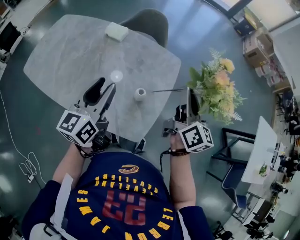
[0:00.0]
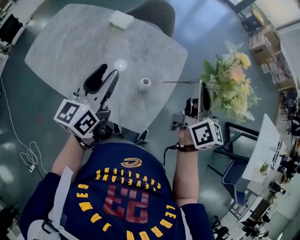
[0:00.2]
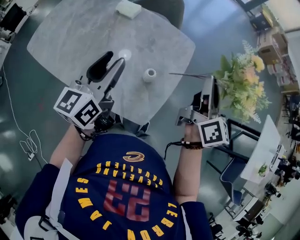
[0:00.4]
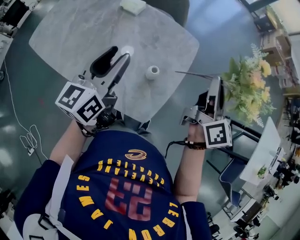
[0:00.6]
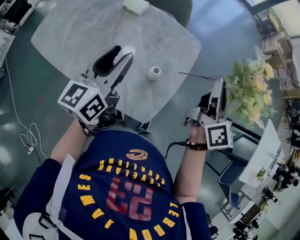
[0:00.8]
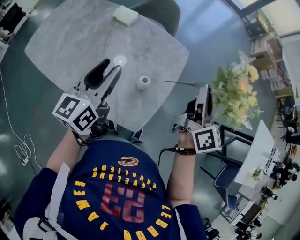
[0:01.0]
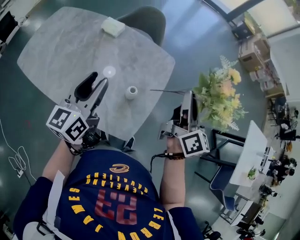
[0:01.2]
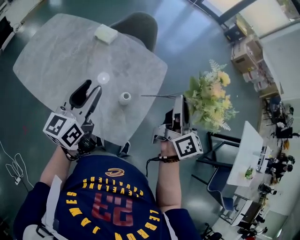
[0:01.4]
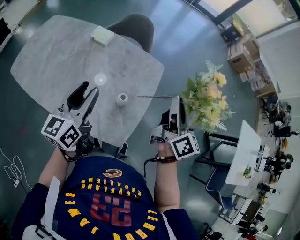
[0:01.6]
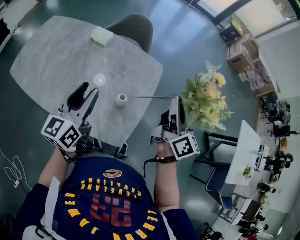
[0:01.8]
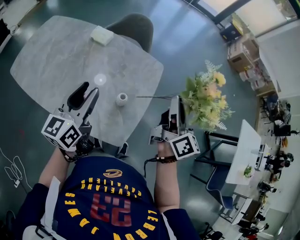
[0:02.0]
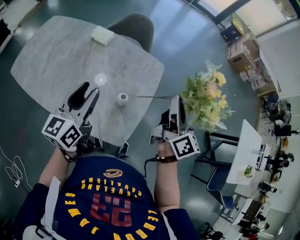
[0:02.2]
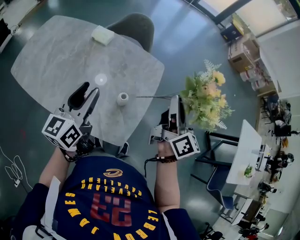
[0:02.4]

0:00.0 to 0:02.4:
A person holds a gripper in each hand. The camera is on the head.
0:00.0 to 0:02.4: The grippers stay close to where they were, moving slightly.

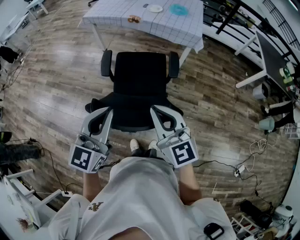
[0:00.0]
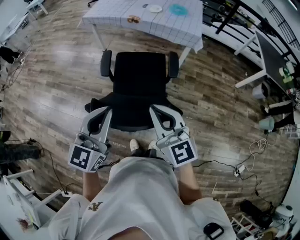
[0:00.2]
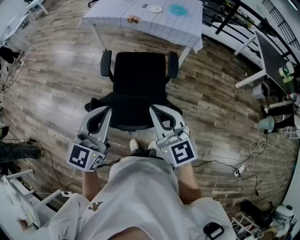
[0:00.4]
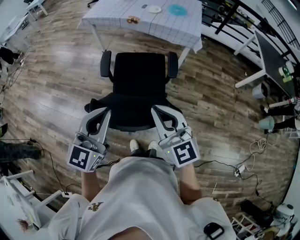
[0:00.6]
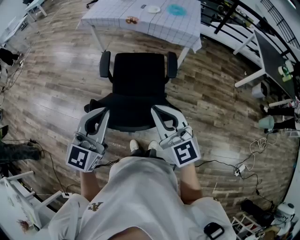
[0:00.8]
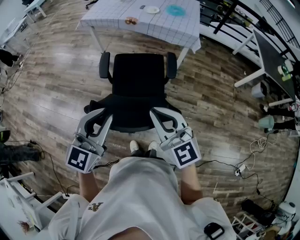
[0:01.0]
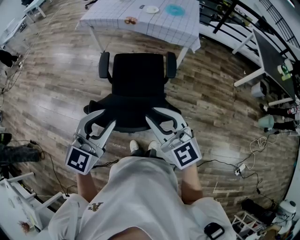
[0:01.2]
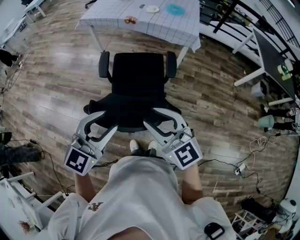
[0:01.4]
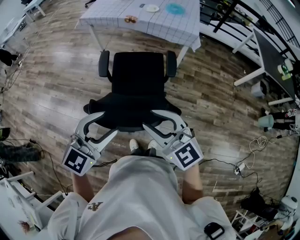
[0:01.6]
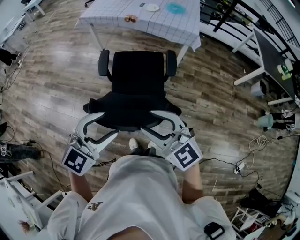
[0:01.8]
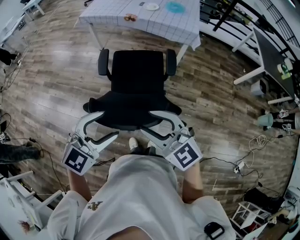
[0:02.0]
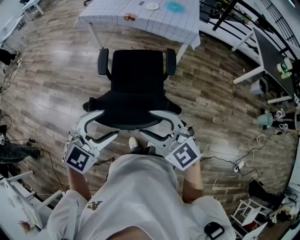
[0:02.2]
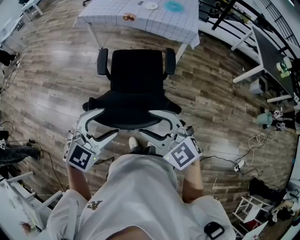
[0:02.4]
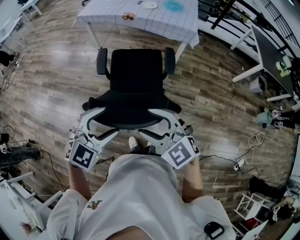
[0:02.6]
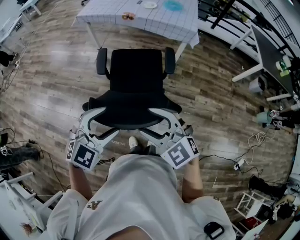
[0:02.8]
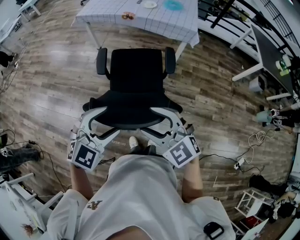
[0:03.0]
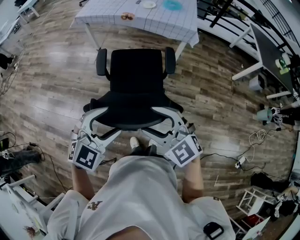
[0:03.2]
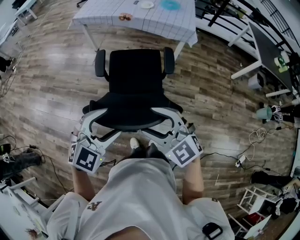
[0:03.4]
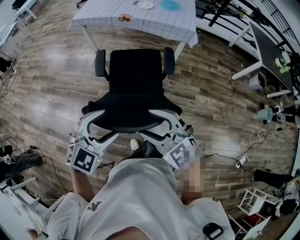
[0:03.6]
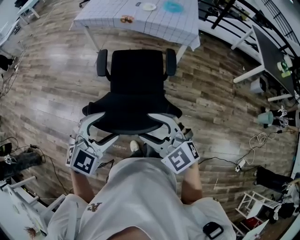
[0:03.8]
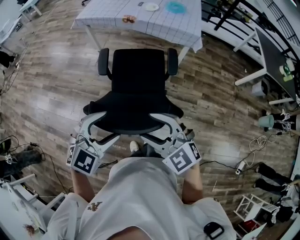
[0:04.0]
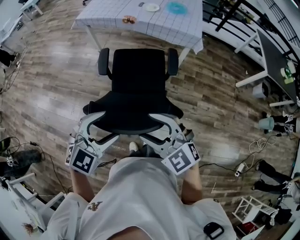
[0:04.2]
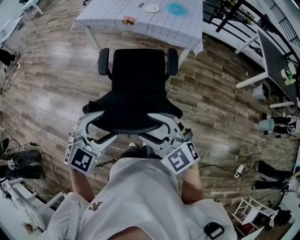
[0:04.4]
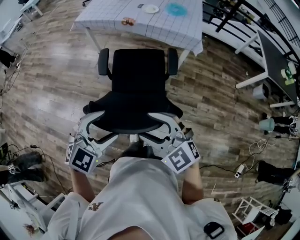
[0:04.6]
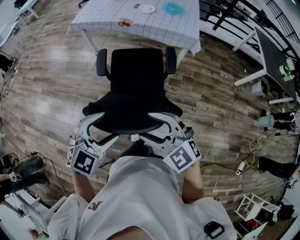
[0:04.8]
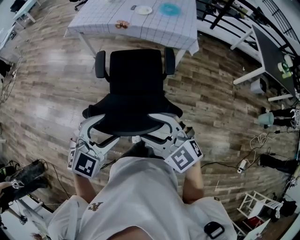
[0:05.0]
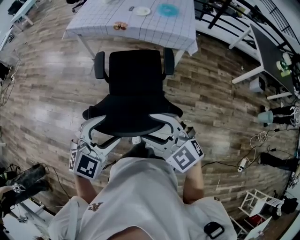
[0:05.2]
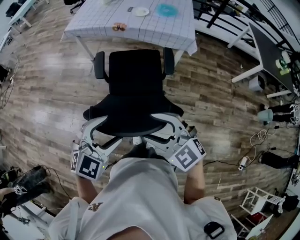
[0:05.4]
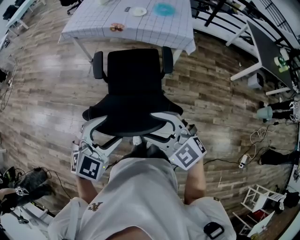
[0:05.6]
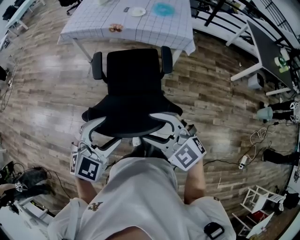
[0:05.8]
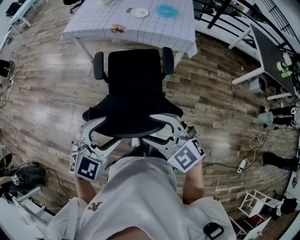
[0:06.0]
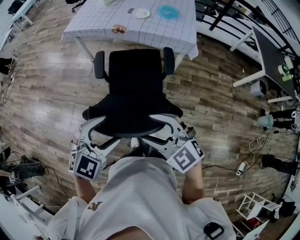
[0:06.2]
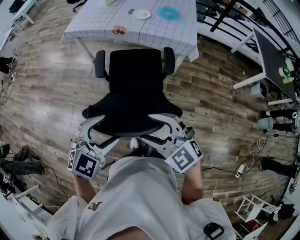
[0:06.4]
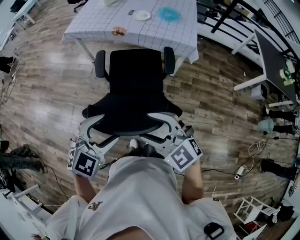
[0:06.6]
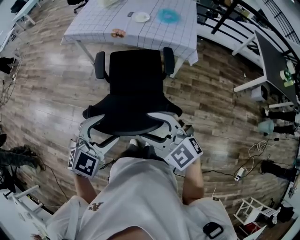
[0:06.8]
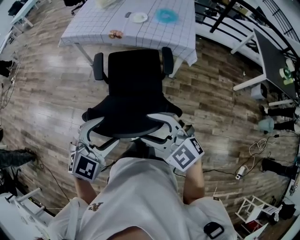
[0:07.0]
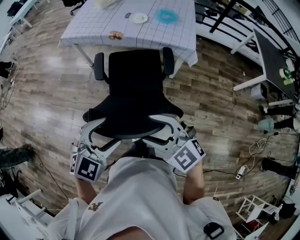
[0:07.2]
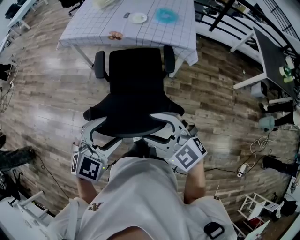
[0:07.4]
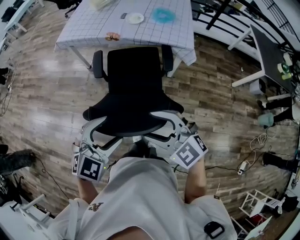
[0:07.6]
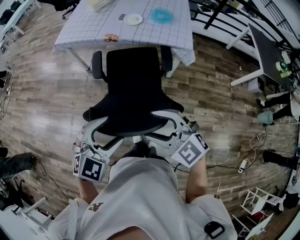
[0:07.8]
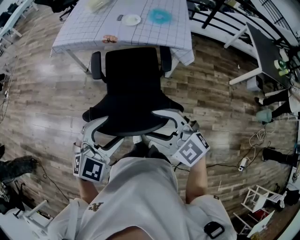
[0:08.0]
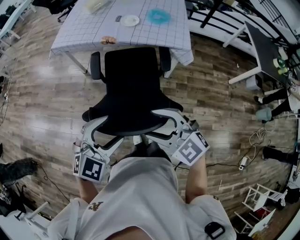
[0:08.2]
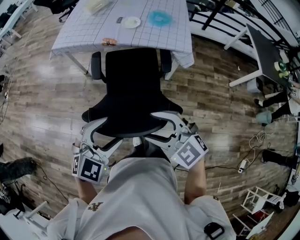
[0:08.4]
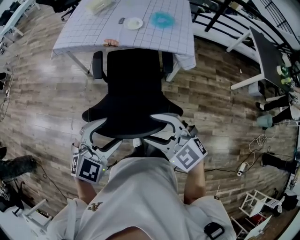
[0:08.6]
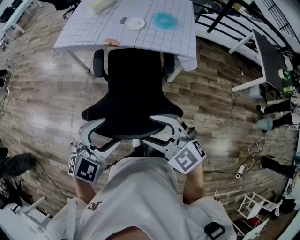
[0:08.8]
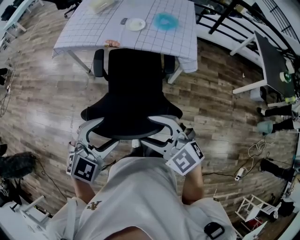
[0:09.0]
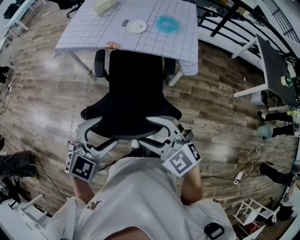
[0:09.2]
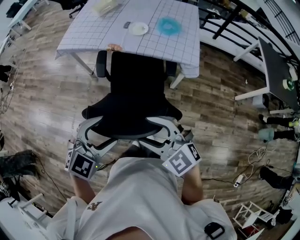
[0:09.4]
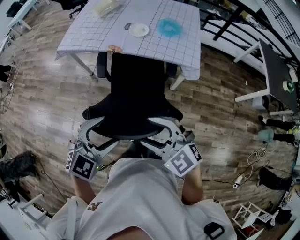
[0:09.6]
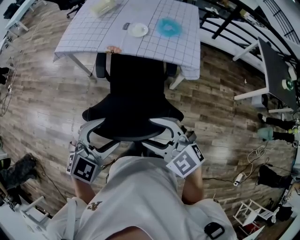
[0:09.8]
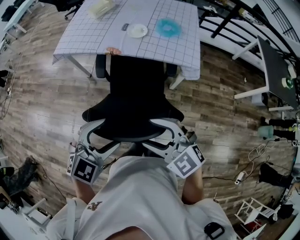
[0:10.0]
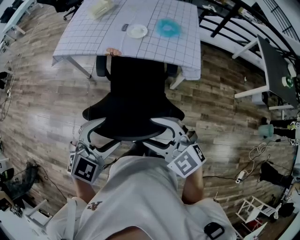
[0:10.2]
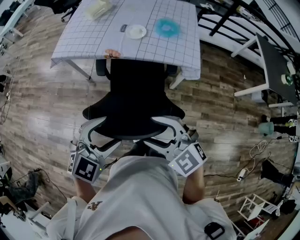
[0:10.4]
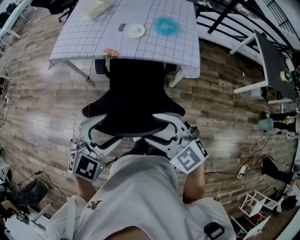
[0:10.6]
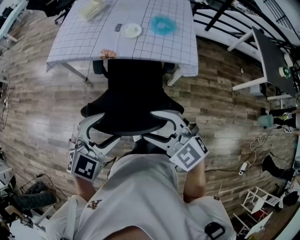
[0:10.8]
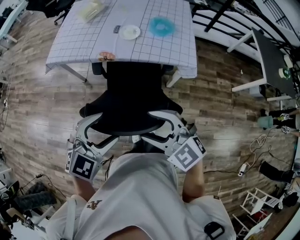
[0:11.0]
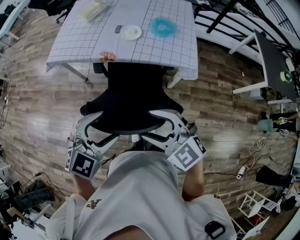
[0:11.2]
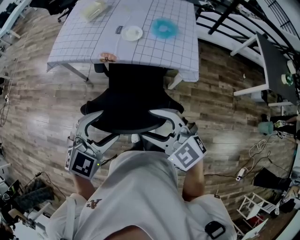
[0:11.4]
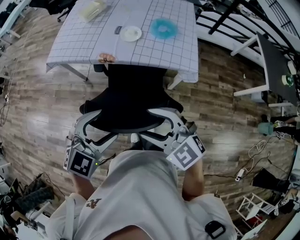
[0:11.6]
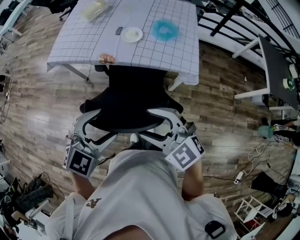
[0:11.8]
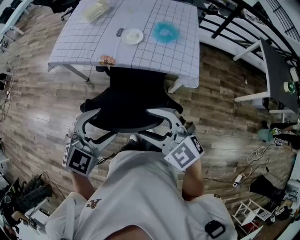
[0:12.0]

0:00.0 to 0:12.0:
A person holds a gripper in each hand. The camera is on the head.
0:00.0 to 0:01.6: The right gripper opens its fingers. Meanwhile the left gripper swivels some 30 degrees, and opens up.
0:01.6 to 0:03.0: The right gripper opens.
0:03.0 to 0:04.4: Both grippers travel together forward, approximately 10 cm.
0:04.4 to 0:06.0: The grippers both shift forward by approximately 10 cm.
0:06.0 to 0:07.6: The two grippers go approximately 10 cm forward.
0:07.6 to 0:09.0: Both grippers move forward, roughly 10 cm.
0:09.0 to 0:10.4: The two grippers go approximately 10 cm forward.
0:10.4 to 0:12.0: Both grippers move forward, roughly 10 cm.

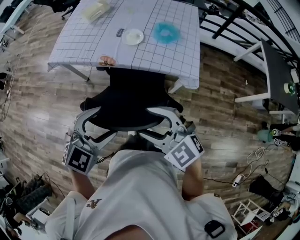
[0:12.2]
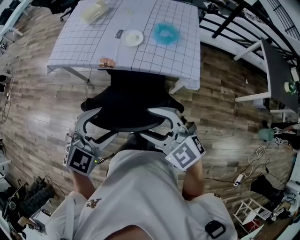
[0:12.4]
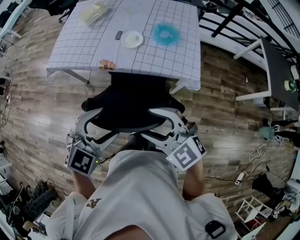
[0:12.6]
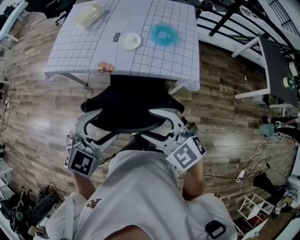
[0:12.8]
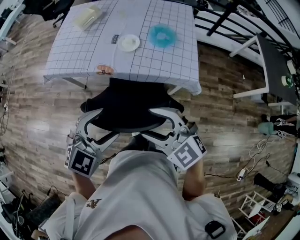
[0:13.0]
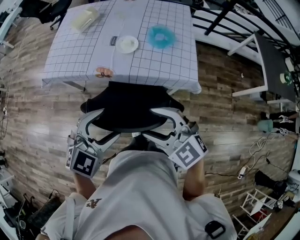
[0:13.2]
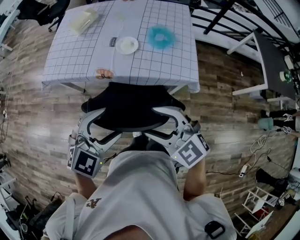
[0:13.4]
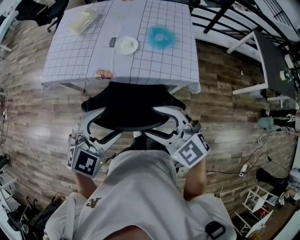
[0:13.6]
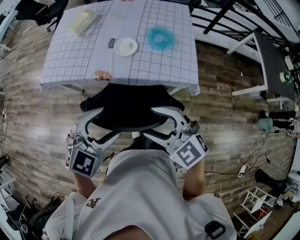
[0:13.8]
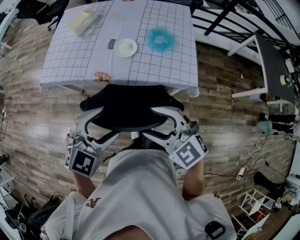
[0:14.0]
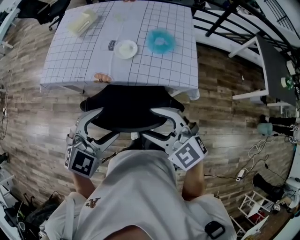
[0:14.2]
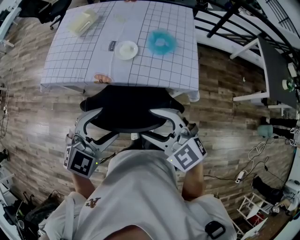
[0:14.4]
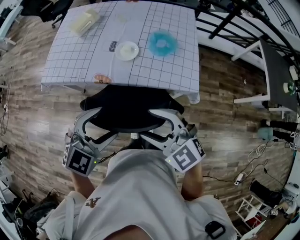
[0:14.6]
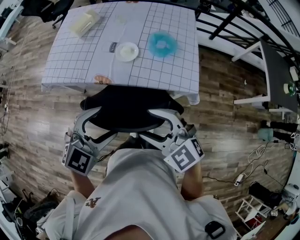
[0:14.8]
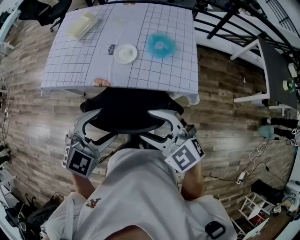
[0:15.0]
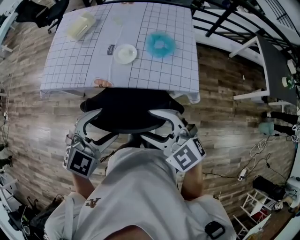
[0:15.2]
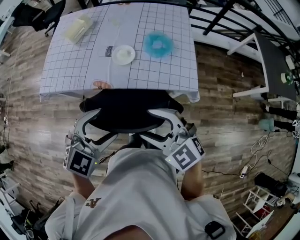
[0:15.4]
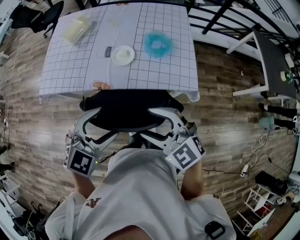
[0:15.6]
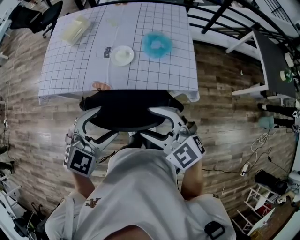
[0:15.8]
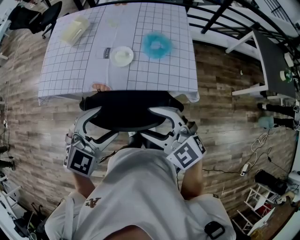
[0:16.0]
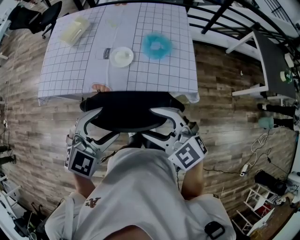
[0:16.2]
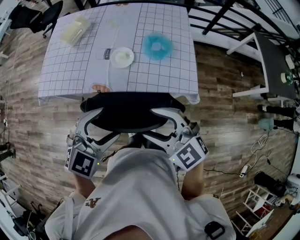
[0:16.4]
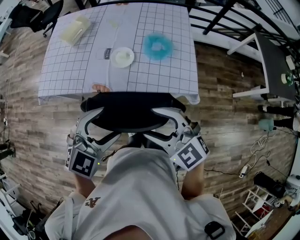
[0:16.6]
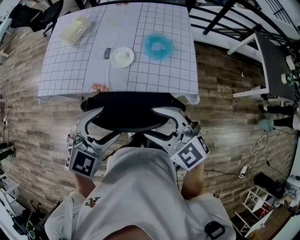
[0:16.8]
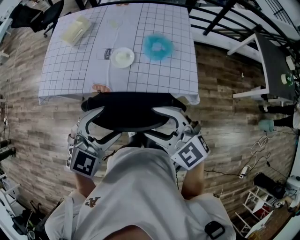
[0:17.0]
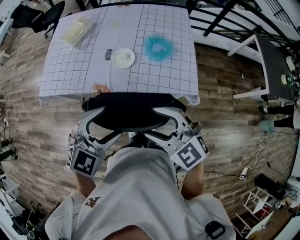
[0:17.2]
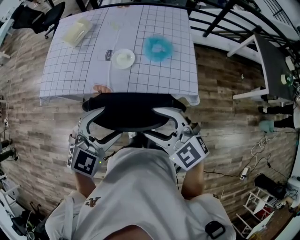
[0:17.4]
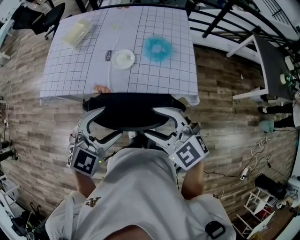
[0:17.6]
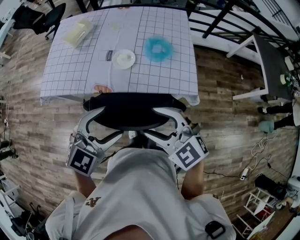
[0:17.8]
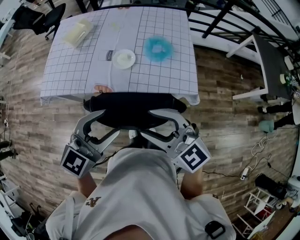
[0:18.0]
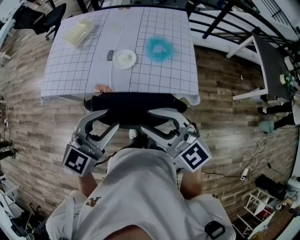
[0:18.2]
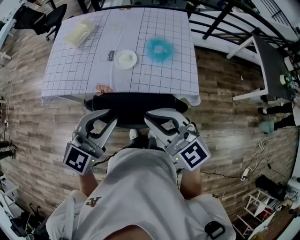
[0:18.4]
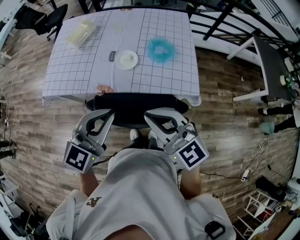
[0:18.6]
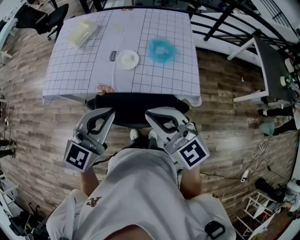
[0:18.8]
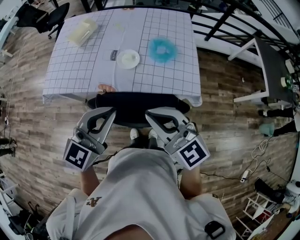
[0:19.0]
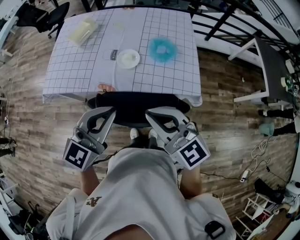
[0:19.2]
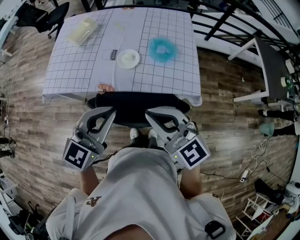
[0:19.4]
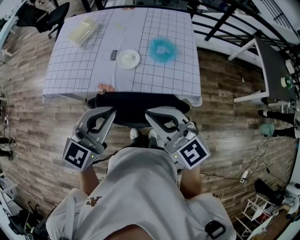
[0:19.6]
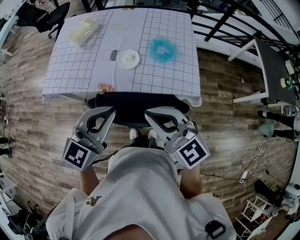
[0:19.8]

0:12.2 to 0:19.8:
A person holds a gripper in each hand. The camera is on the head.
0:12.2 to 0:13.8: Both grippers move forward, some 10 cm.
0:13.8 to 0:15.2: The two grippers go about 5 cm forward.
0:15.2 to 0:16.8: The grippers move only a little.
0:16.8 to 0:18.2: Both grippers move upward, about 5 cm. The left gripper turns by some 20 degrees, and closes its fingers. The right gripper closes its fingers.
0:18.2 to 0:19.8: The right gripper closes. Meanwhile the left gripper closes its fingers.

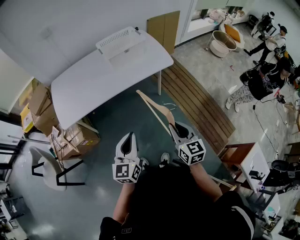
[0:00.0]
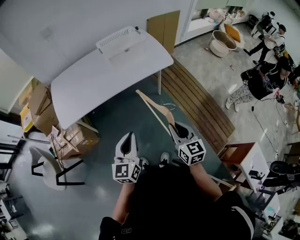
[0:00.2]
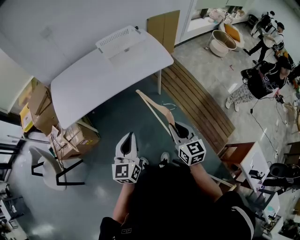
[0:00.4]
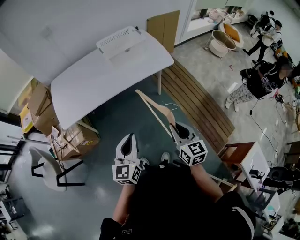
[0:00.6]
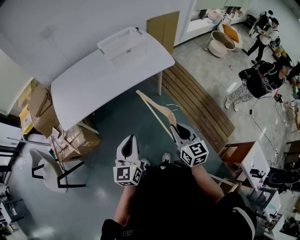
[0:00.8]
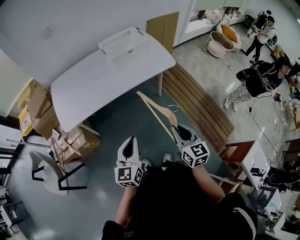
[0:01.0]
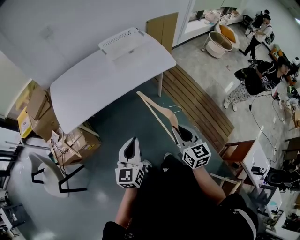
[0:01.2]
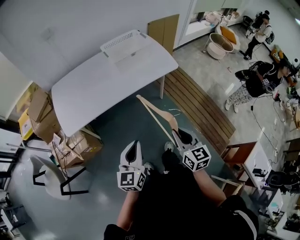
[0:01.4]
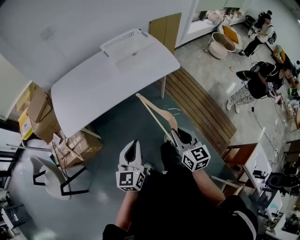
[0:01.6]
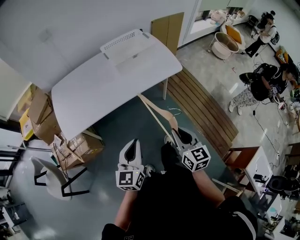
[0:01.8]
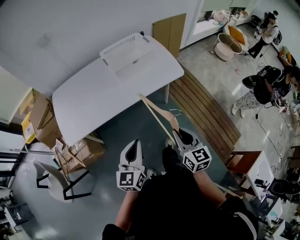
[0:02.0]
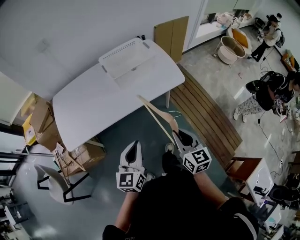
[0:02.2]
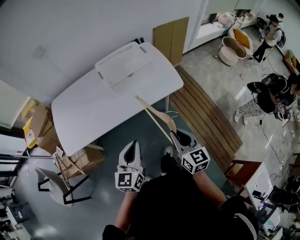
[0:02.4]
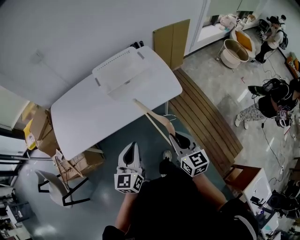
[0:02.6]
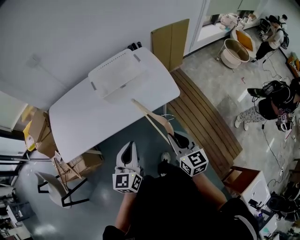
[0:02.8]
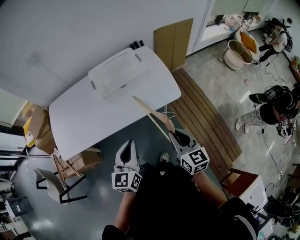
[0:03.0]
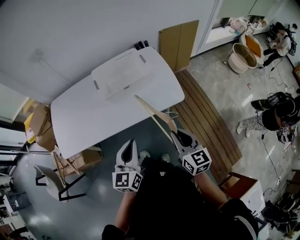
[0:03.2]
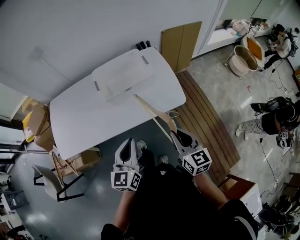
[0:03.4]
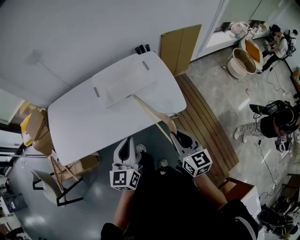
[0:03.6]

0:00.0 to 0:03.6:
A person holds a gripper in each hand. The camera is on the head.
0:00.0 to 0:01.8: The right gripper is displaced forward and to the left by some 10 cm, while the left gripper shifts some 5 cm forward.
0:01.8 to 0:03.6: Both grippers travel together forward and to the right, about 35 cm.
